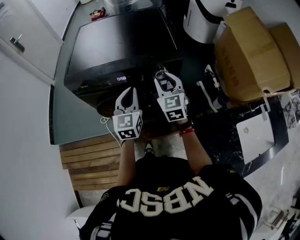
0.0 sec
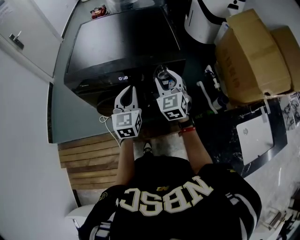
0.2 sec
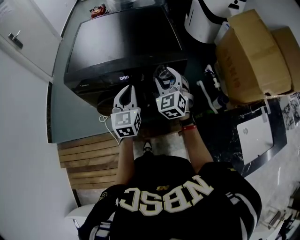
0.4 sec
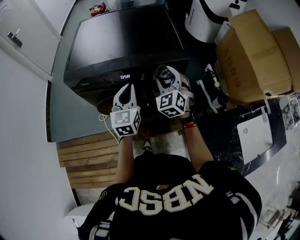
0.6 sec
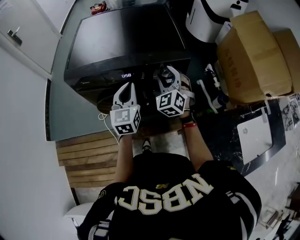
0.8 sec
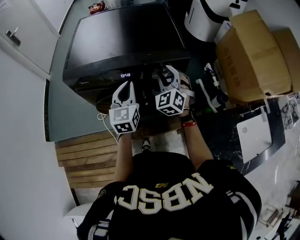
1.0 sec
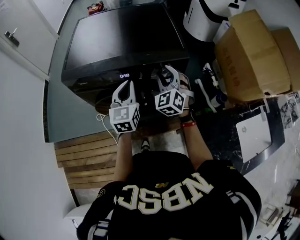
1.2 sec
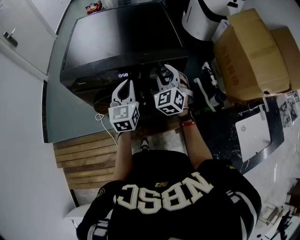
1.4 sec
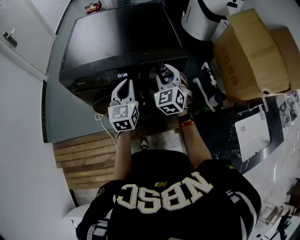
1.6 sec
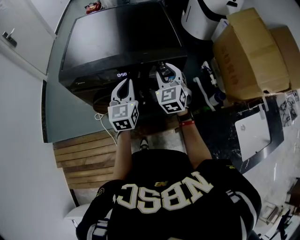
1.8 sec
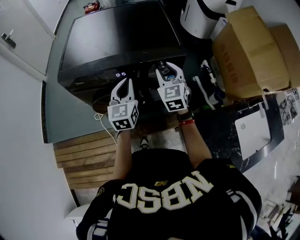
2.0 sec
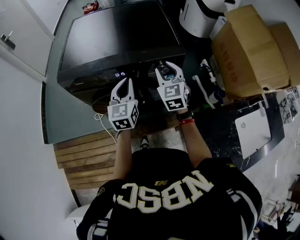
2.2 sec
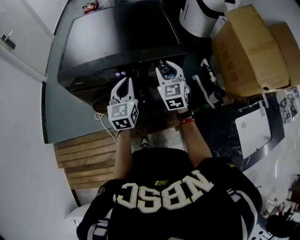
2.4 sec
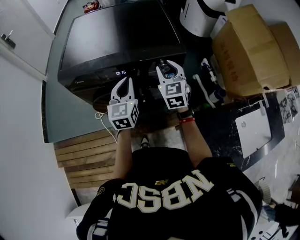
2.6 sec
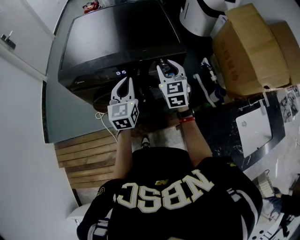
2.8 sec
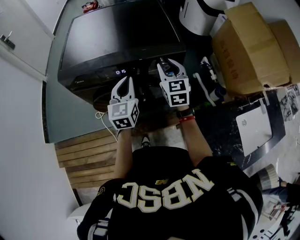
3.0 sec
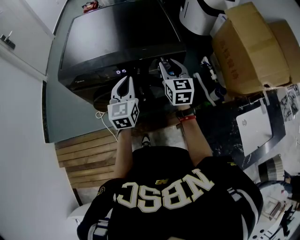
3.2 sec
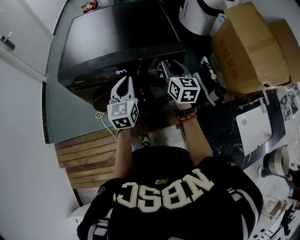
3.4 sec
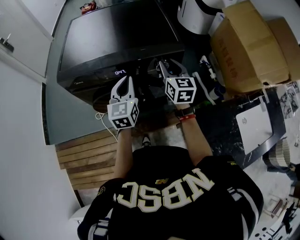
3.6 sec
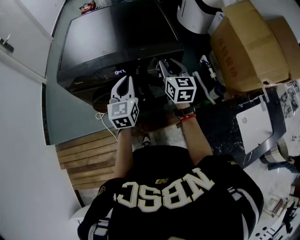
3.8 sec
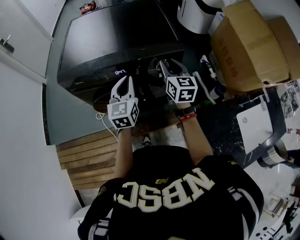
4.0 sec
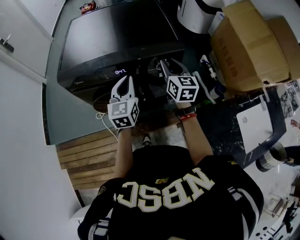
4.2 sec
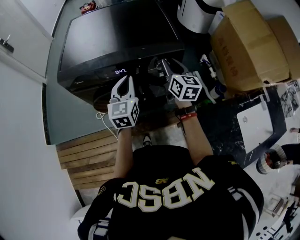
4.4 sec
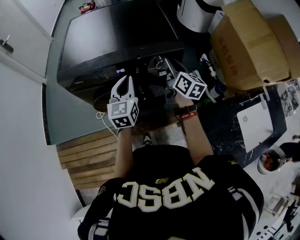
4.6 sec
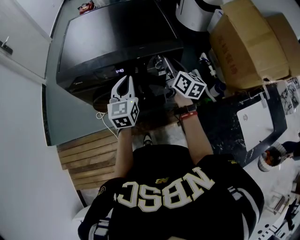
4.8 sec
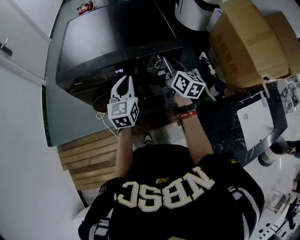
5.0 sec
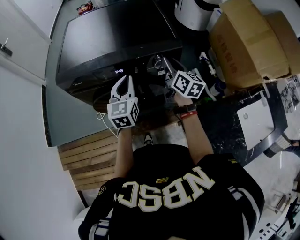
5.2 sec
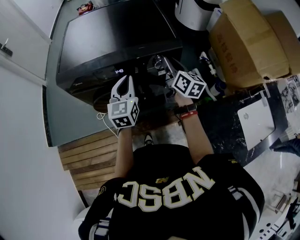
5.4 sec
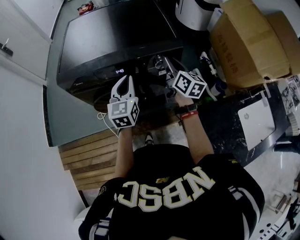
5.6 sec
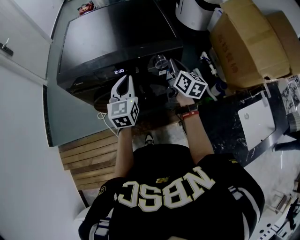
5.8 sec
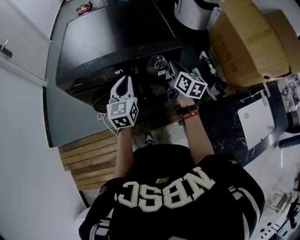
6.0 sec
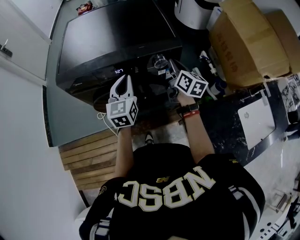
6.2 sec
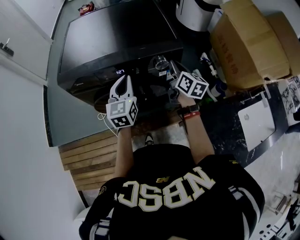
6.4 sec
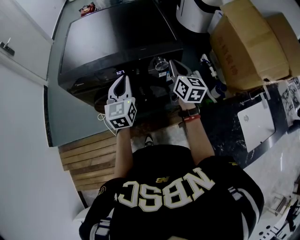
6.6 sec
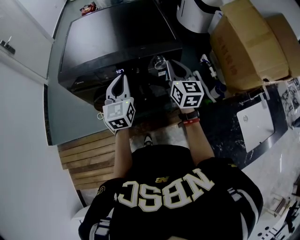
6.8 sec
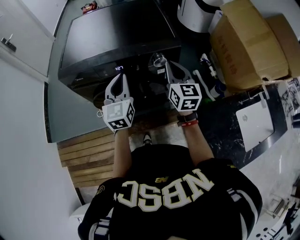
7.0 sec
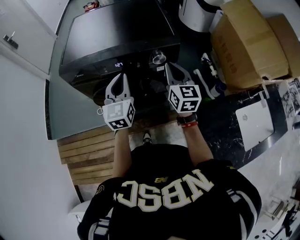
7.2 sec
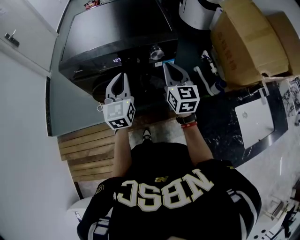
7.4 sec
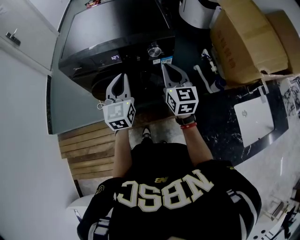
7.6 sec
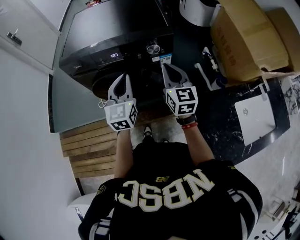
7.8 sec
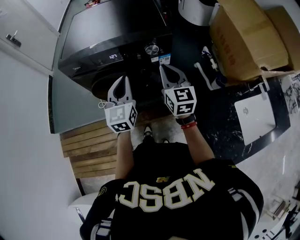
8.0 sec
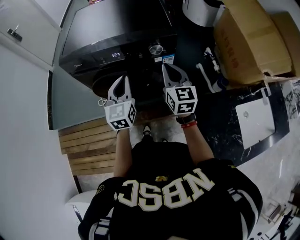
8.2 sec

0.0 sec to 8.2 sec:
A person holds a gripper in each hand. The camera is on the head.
0.0 sec to 1.6 sec: The right gripper turns by approximately 20 degrees.
1.6 sec to 3.2 sec: The right gripper rotates approximately 30 degrees.
3.2 sec to 5.0 sec: The right gripper changes its angle by approximately 30 degrees.
5.0 sec to 6.6 sec: The right gripper closes.
6.6 sec to 8.2 sec: The two grippers go about 10 cm backward.

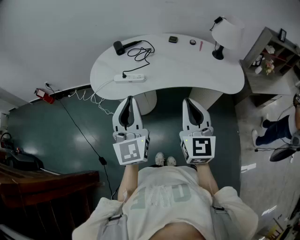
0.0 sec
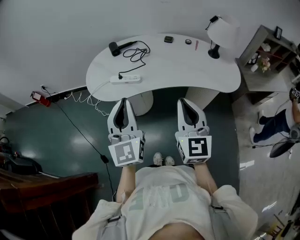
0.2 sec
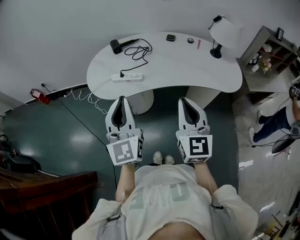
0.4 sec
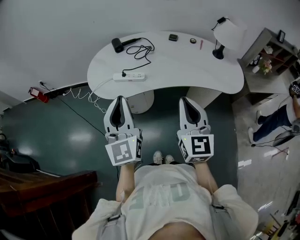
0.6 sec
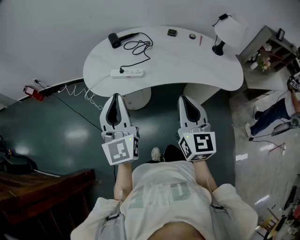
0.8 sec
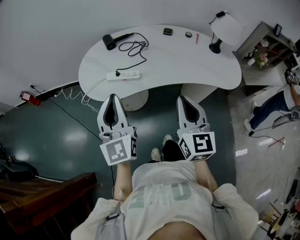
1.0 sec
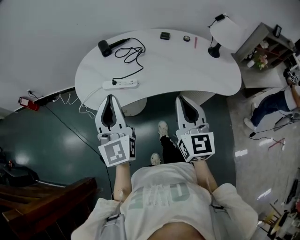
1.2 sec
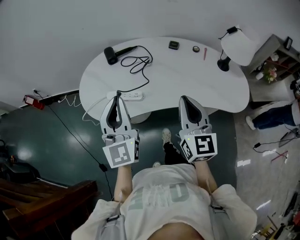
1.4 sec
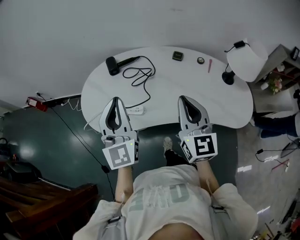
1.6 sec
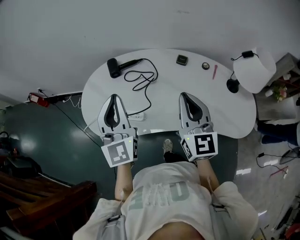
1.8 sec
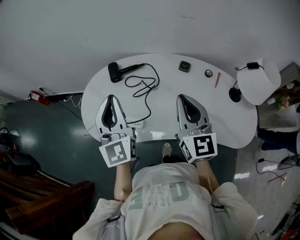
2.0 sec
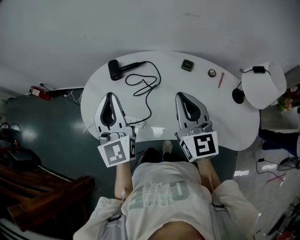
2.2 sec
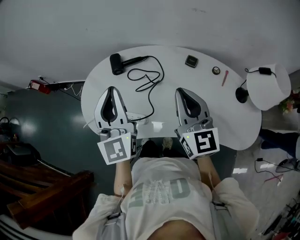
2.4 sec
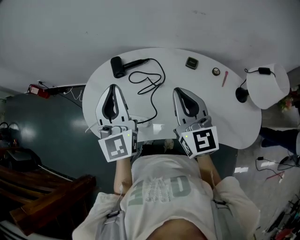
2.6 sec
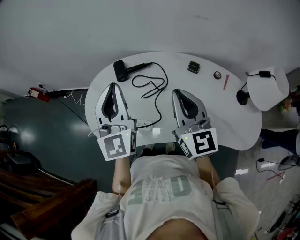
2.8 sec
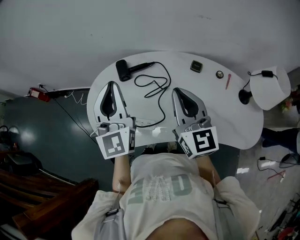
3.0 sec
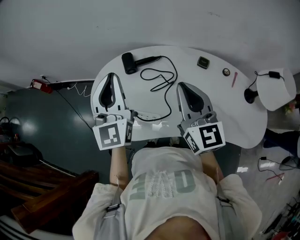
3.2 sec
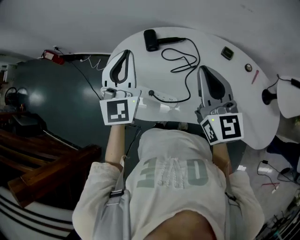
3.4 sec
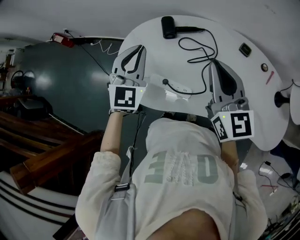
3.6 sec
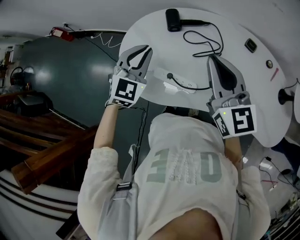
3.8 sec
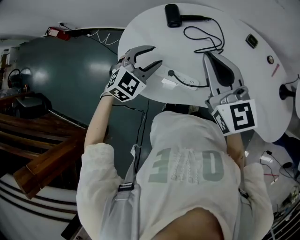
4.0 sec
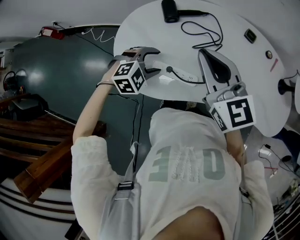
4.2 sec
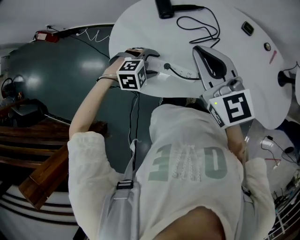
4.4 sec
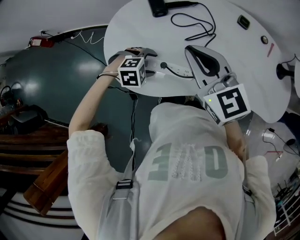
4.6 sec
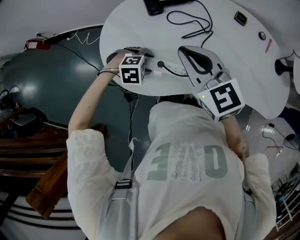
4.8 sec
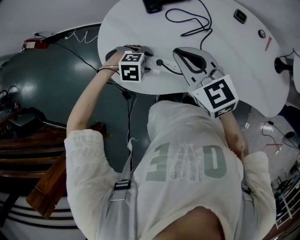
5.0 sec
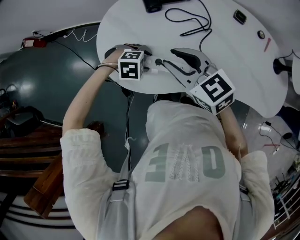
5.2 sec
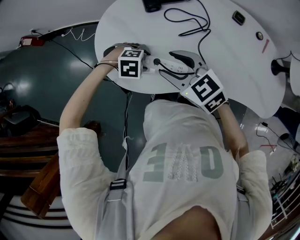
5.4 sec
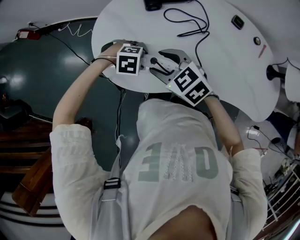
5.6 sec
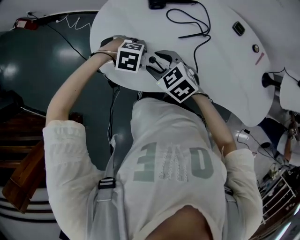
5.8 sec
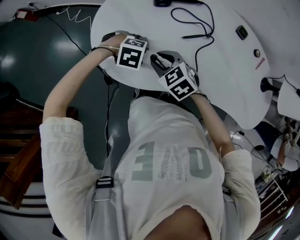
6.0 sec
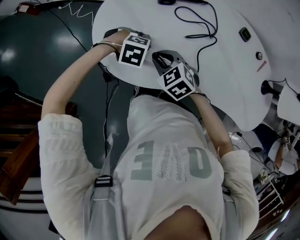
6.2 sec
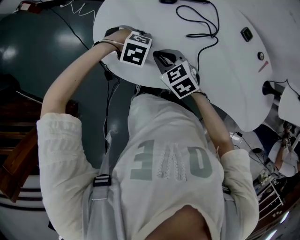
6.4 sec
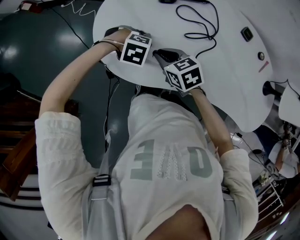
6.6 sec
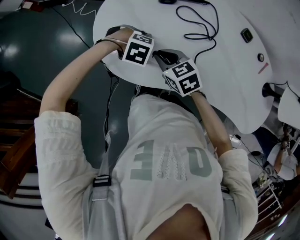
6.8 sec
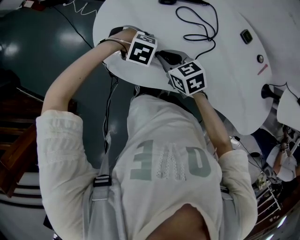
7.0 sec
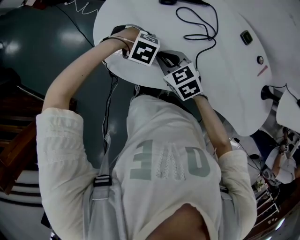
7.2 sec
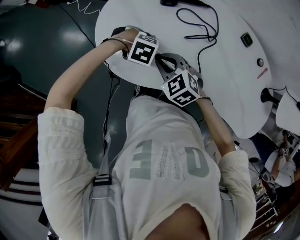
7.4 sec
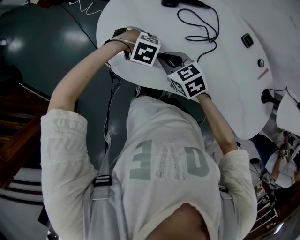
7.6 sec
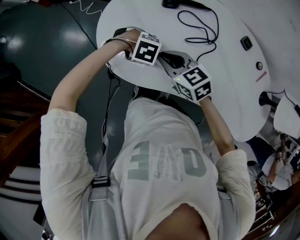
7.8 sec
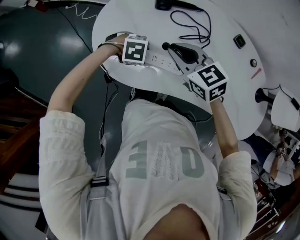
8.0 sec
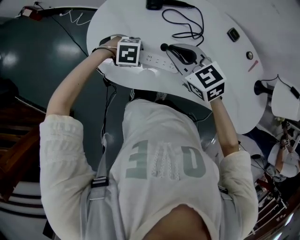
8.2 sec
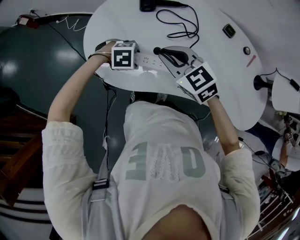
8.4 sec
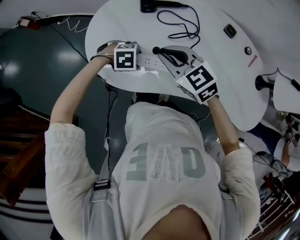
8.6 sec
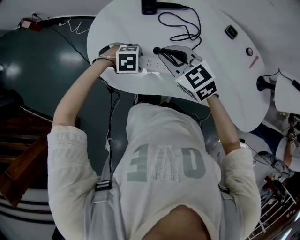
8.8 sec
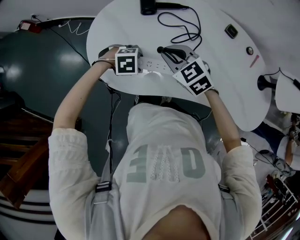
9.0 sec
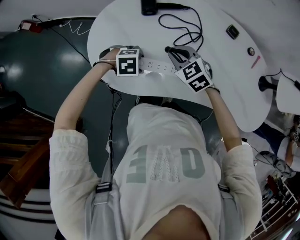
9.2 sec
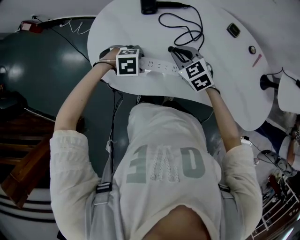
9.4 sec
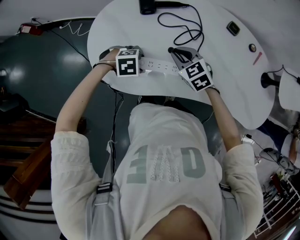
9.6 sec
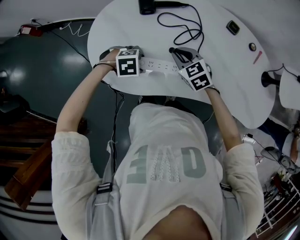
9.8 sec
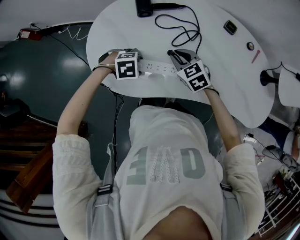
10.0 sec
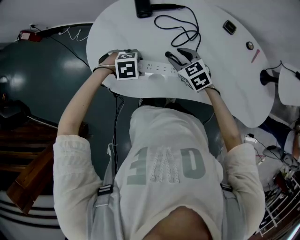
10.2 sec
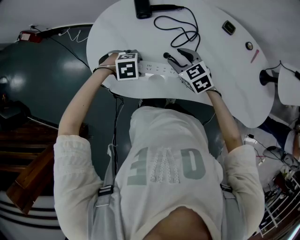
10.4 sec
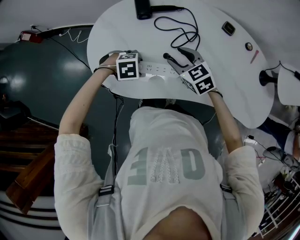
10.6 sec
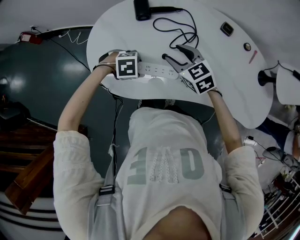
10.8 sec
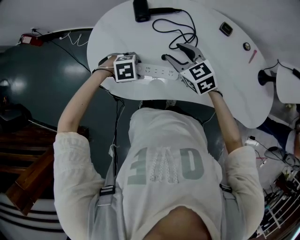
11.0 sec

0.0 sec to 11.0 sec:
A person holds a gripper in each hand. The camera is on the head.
0.0 sec to 1.6 sec: Both grippers travel together forward, roughly 25 cm.
1.6 sec to 3.2 sec: The grippers both shift forward by roughly 15 cm.
3.2 sec to 4.8 sec: The right gripper shifts by some 20 cm, and changes its angle by about 30 degrees; the left gripper goes about 40 cm downward, points its fingers approximately 80 degrees further downward, and opens its fingers.
4.8 sec to 6.2 sec: The right gripper is displaced downward by some 20 cm, tips its fingers downward by approximately 30 degrees, and opens, then closes again.
6.2 sec to 7.8 sec: The right gripper goes roughly 5 cm upward, and changes its angle by roughly 20 degrees.
7.8 sec to 9.4 sec: The right gripper ends up roughly 10 cm from where it was, and changes its angle by roughly 20 degrees.
9.4 sec to 11.0 sec: The right gripper moves upward, some 5 cm, and opens.

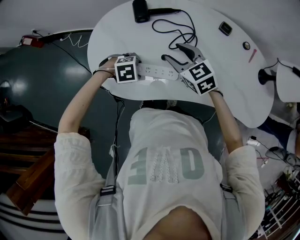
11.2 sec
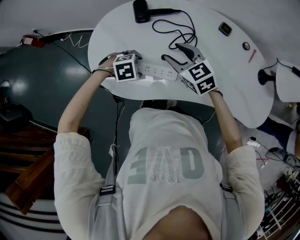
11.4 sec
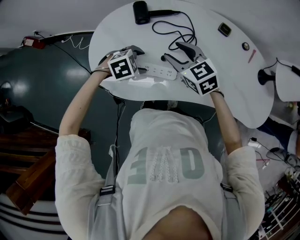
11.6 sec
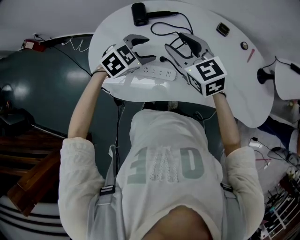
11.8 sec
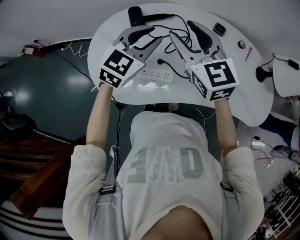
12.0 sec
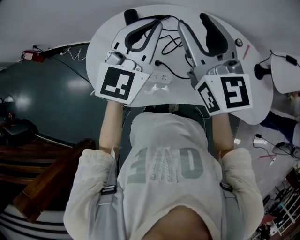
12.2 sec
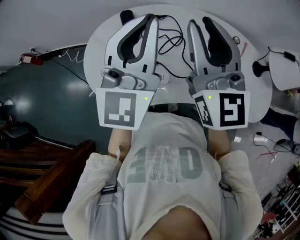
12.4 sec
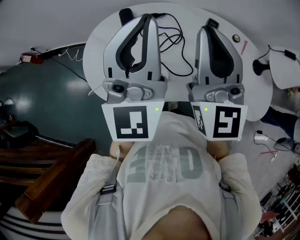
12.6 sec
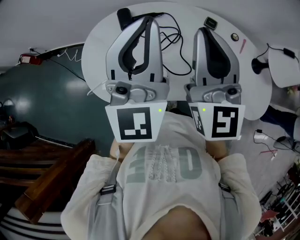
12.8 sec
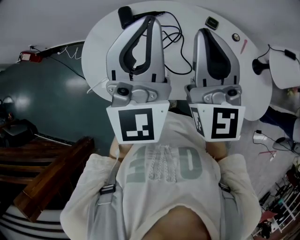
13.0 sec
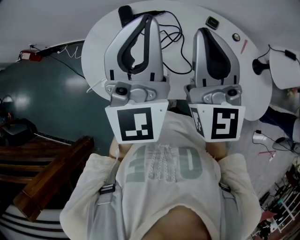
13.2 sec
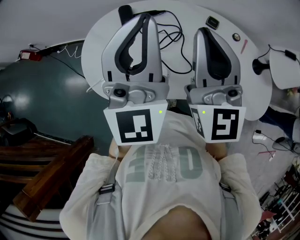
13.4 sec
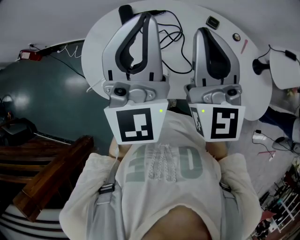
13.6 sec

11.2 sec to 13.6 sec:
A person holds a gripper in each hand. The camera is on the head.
11.2 sec to 12.4 sec: The grippers both shift upward by roughly 35 cm. The left gripper points its fingers some 90 degrees further upward, and closes up. Meanwhile the right gripper points its fingers roughly 40 degrees further upward, and closes up.
12.4 sec to 13.6 sec: The grippers stay close to where they were, moving slightly.

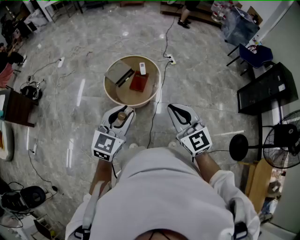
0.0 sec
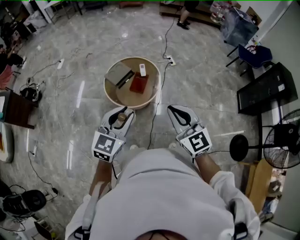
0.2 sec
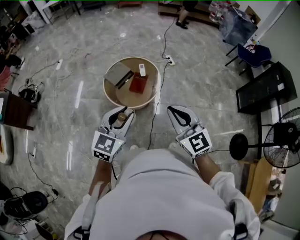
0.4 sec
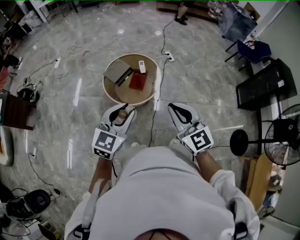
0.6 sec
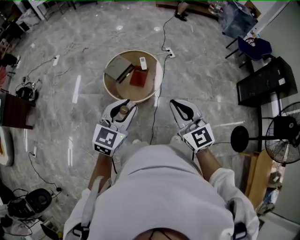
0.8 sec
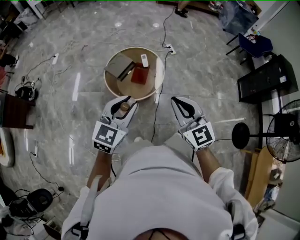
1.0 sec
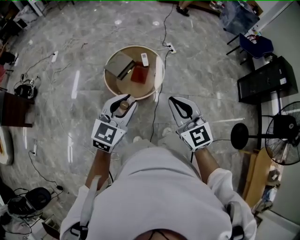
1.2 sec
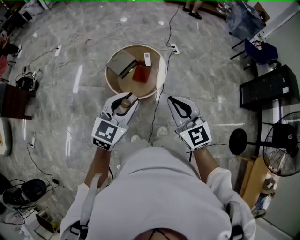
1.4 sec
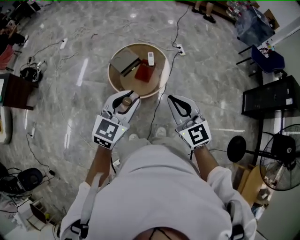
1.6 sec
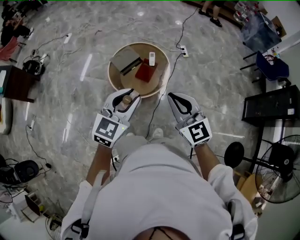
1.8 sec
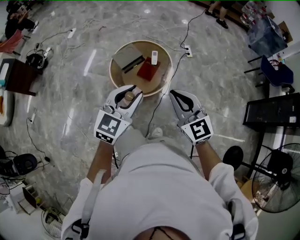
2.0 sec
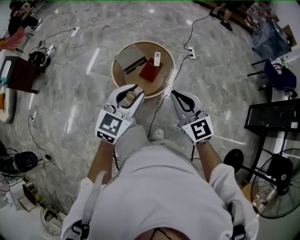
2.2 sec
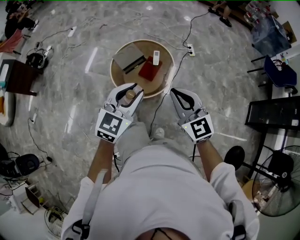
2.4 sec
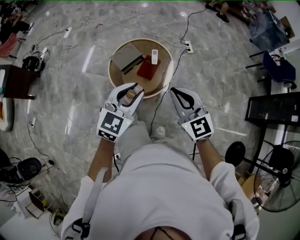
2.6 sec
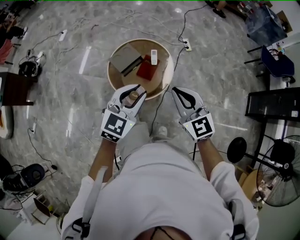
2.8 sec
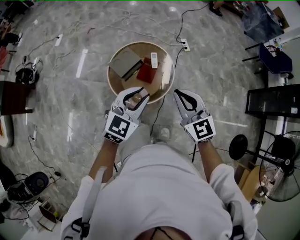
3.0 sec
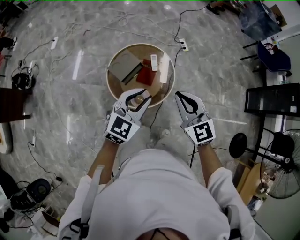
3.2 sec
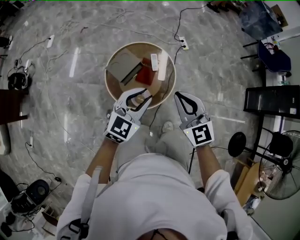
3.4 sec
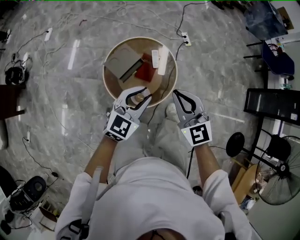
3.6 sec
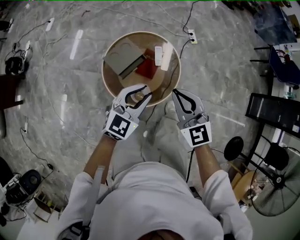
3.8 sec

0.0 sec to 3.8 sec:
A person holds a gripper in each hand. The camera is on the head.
0.0 sec to 1.2 sec: The right gripper moves to the left, approximately 5 cm; the left gripper goes roughly 10 cm forward and to the left.
1.2 sec to 2.6 sec: The right gripper goes some 15 cm forward. Meanwhile the left gripper heads forward and to the right, covering roughly 15 cm.
2.6 sec to 3.8 sec: The right gripper is displaced forward, downward and to the left by about 25 cm. The left gripper heads downward and forward, covering some 25 cm.
